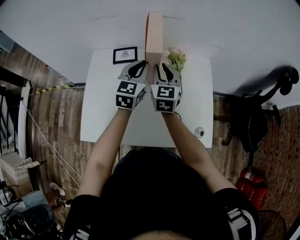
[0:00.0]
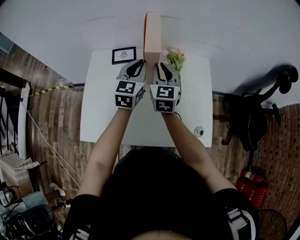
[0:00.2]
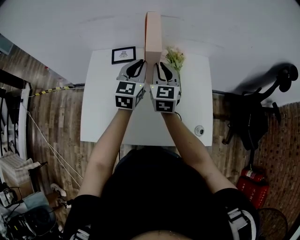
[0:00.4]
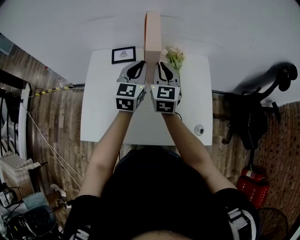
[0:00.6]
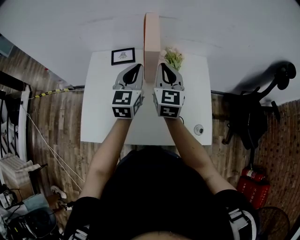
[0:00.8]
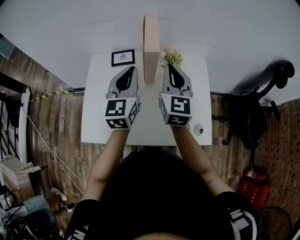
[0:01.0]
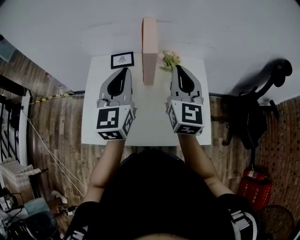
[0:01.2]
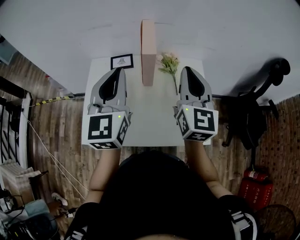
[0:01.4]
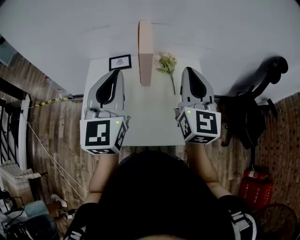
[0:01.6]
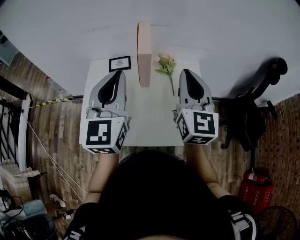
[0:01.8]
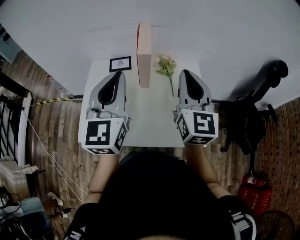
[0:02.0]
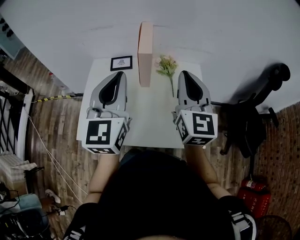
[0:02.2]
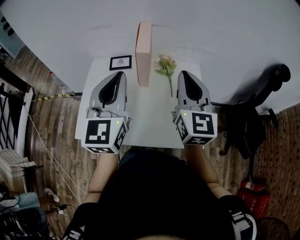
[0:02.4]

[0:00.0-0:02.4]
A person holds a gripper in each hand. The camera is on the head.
0.0 to 1.2 s: The right gripper heads upward, backward and to the right, covering some 20 cm. The left gripper is displaced upward and backward by roughly 15 cm.
1.2 to 2.4 s: The left gripper heads backward, covering about 5 cm, while the right gripper travels to the right and backward by about 5 cm.

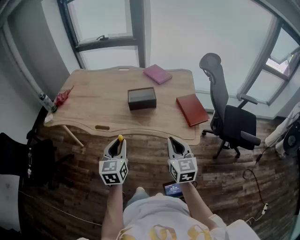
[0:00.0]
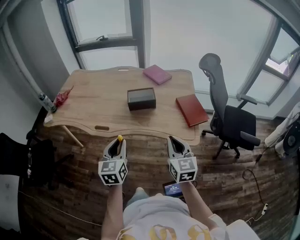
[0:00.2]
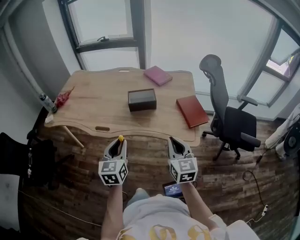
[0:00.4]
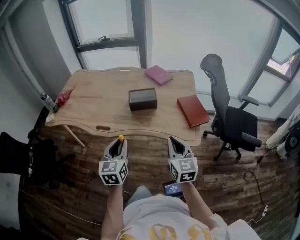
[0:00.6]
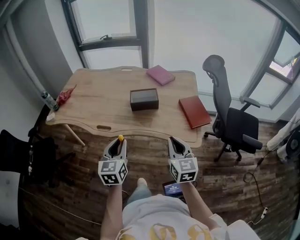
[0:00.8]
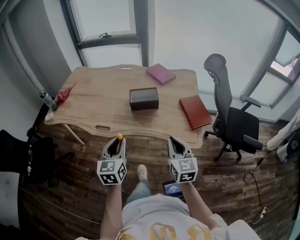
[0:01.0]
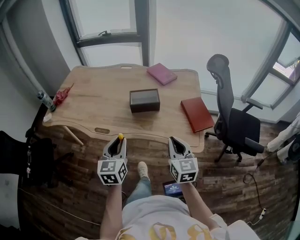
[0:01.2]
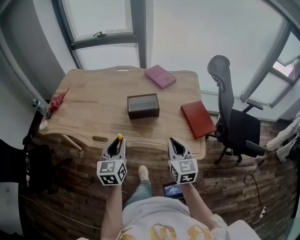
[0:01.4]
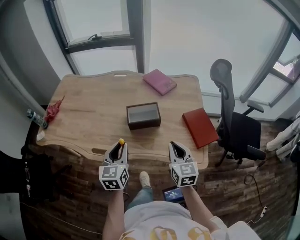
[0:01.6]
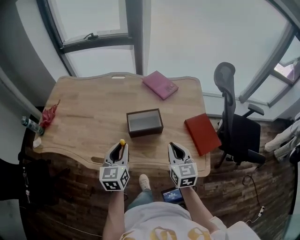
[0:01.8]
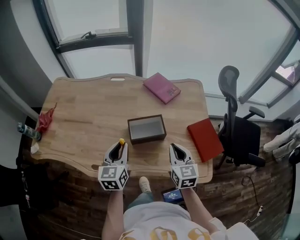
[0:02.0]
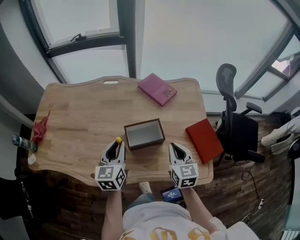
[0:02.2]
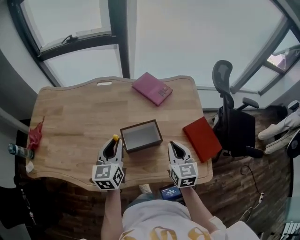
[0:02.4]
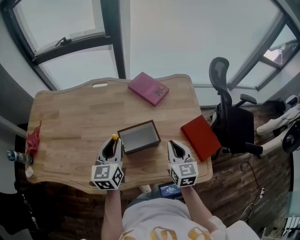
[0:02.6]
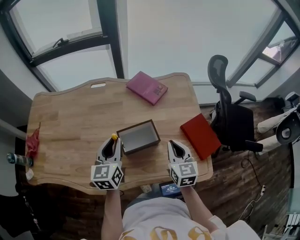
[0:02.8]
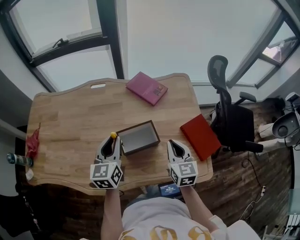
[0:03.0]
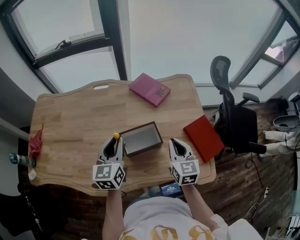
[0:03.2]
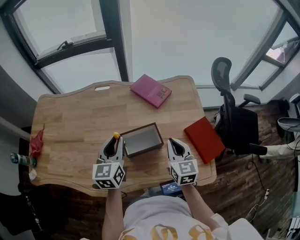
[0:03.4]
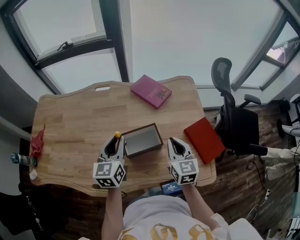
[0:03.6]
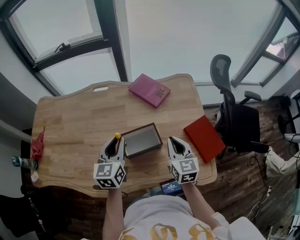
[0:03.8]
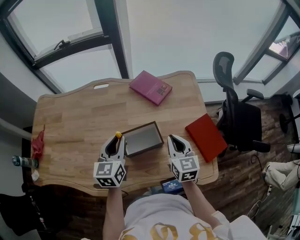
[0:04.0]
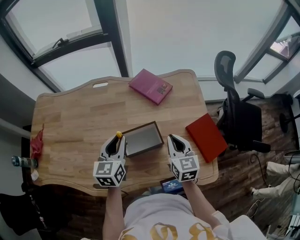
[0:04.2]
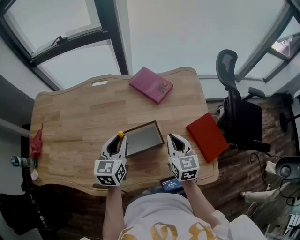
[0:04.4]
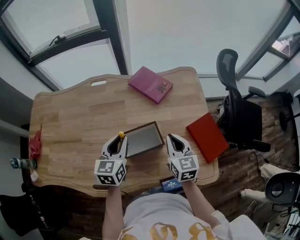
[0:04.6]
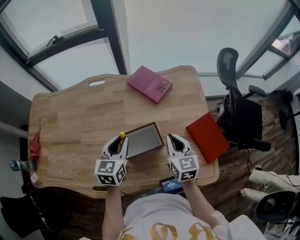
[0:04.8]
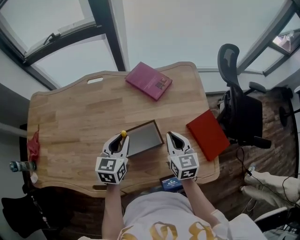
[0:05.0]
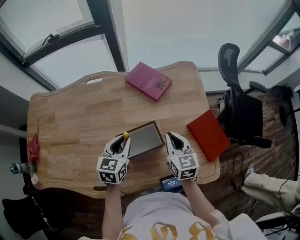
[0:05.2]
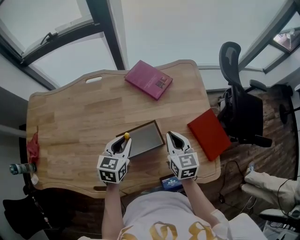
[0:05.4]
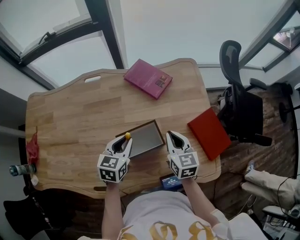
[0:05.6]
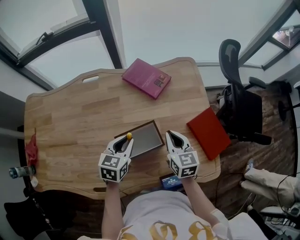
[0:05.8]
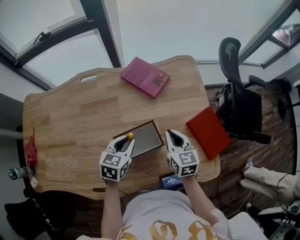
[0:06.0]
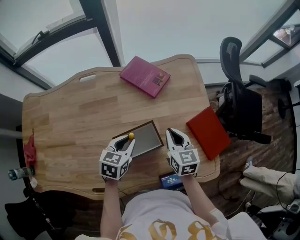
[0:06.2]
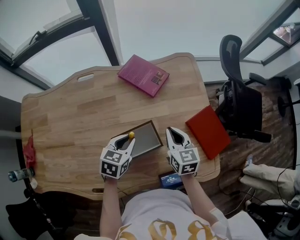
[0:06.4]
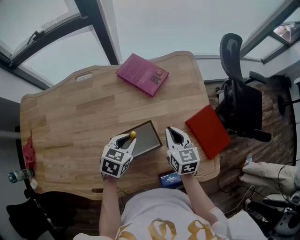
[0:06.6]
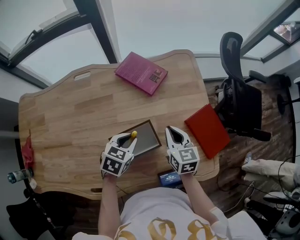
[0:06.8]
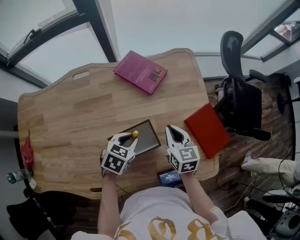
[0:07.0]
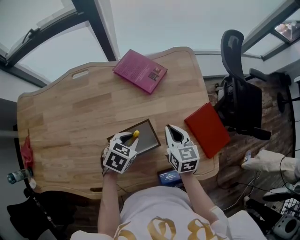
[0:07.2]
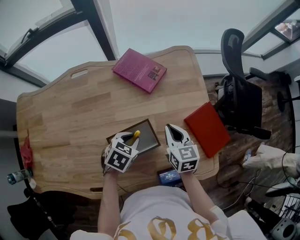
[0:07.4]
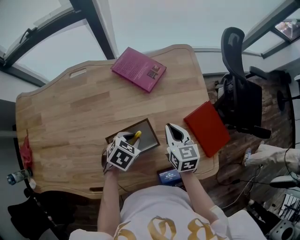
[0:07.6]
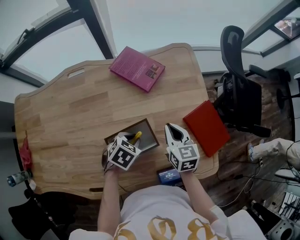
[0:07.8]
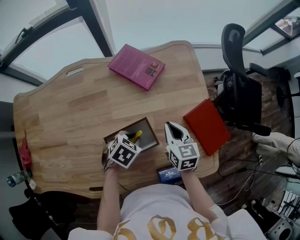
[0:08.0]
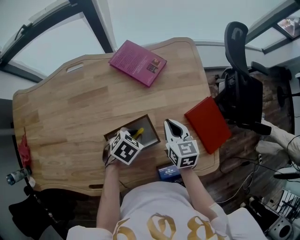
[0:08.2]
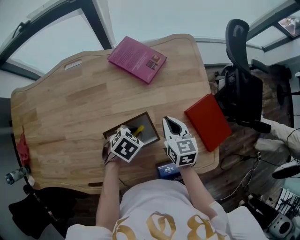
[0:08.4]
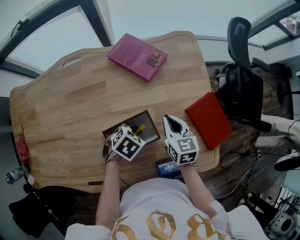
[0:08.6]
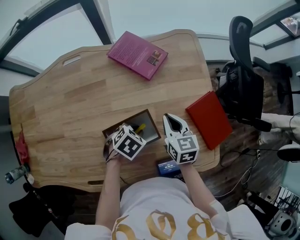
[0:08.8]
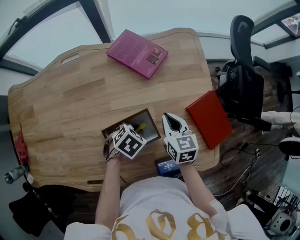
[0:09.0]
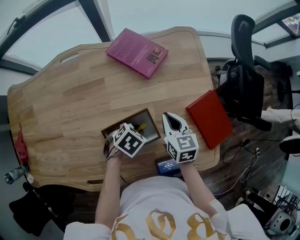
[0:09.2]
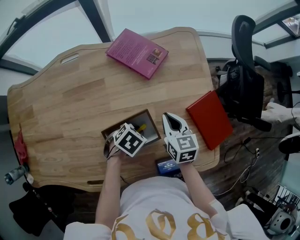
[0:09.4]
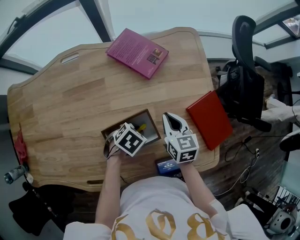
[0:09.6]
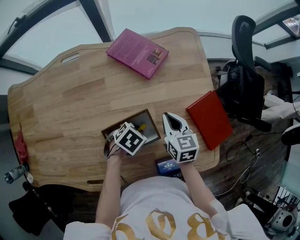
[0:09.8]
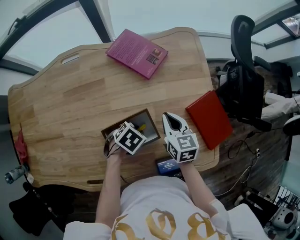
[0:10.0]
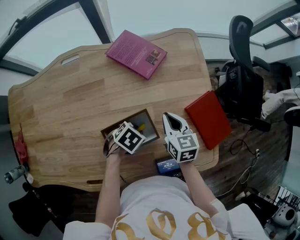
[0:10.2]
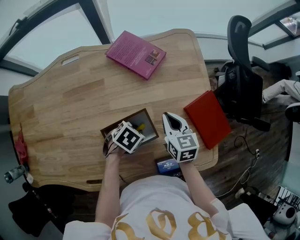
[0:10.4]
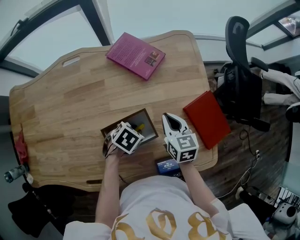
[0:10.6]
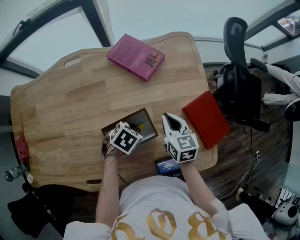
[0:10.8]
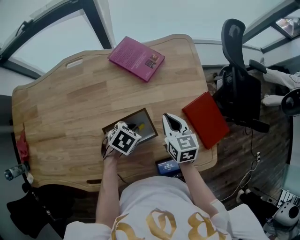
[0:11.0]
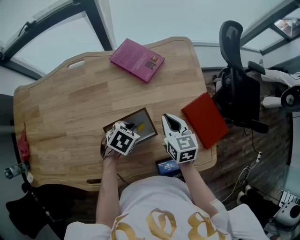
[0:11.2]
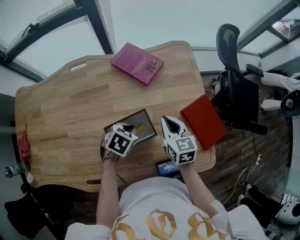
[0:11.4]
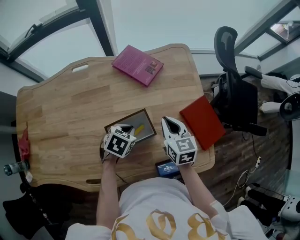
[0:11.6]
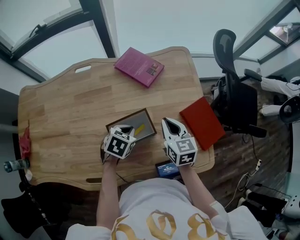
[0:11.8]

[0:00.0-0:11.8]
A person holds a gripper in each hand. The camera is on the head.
0.0 to 1.4 s: The grippers both shift forward by about 10 cm.
1.4 to 3.0 s: The two grippers go approximately 25 cm forward.
3.0 to 4.4 s: The left gripper moves about 5 cm. Meanwhile the right gripper ends up some 5 cm from where it was.
4.4 to 6.0 s: The left gripper travels downward by roughly 10 cm, and turns by approximately 30 degrees; the right gripper moves approximately 5 cm.
6.0 to 7.4 s: The left gripper heads downward, covering about 5 cm, and changes its angle by approximately 20 degrees.
7.4 to 8.8 s: The left gripper travels downward by roughly 5 cm.
8.8 to 10.4 s: The grippers move only a little.
10.4 to 11.8 s: The grippers both shift upward by about 5 cm. The left gripper changes its angle by some 20 degrees.

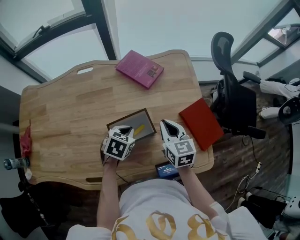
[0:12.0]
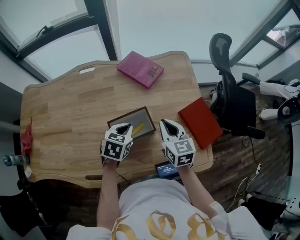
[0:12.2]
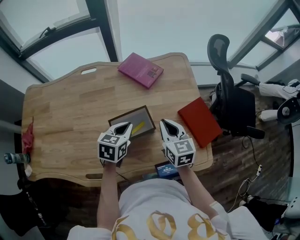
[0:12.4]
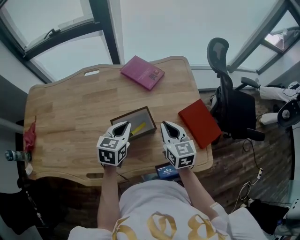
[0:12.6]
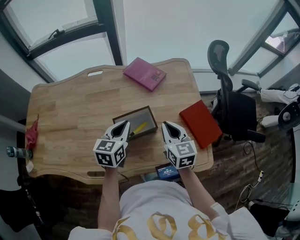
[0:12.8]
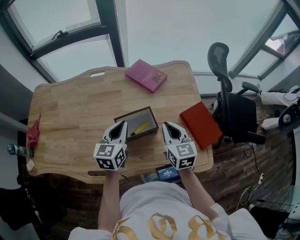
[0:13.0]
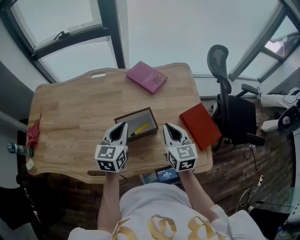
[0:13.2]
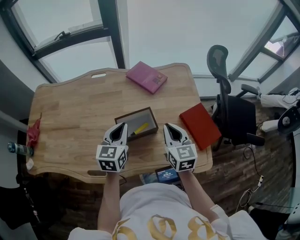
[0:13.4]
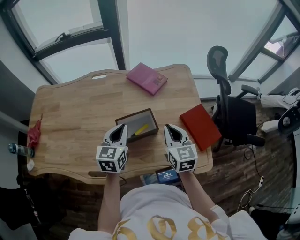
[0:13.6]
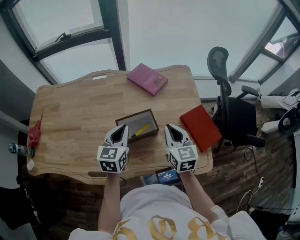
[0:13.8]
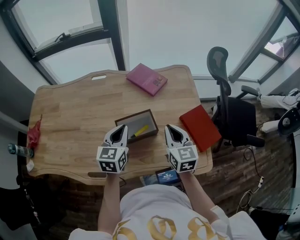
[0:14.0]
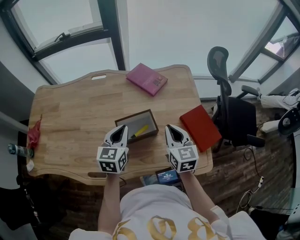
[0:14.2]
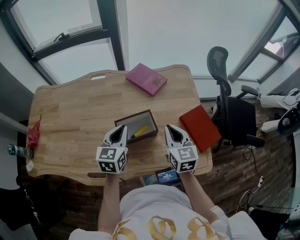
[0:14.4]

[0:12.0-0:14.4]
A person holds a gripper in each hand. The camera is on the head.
12.0 to 13.2 s: The right gripper travels upward and backward by about 10 cm. Meanwhile the left gripper moves upward, about 15 cm, and angles its fingers upward, by approximately 40 degrees.
13.2 to 14.4 s: The two grippers keep their place.

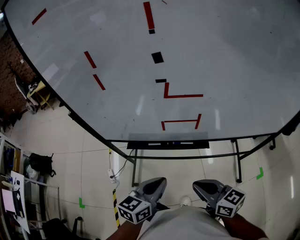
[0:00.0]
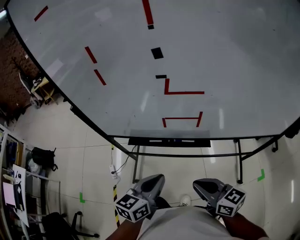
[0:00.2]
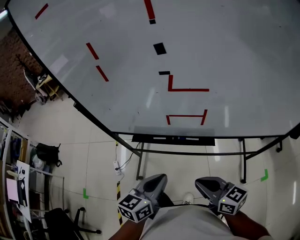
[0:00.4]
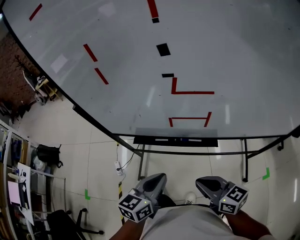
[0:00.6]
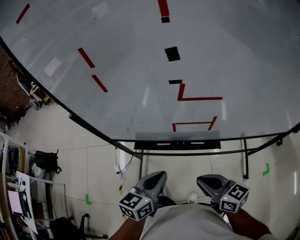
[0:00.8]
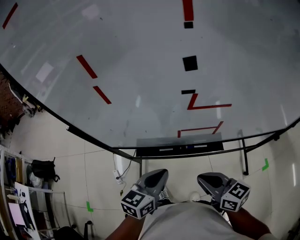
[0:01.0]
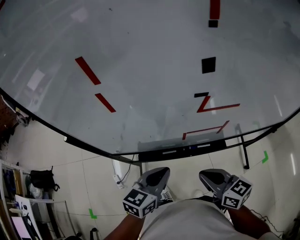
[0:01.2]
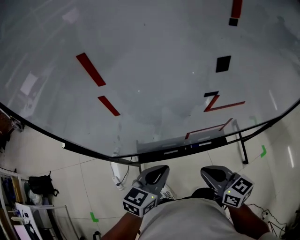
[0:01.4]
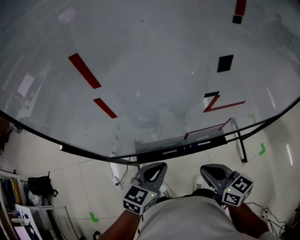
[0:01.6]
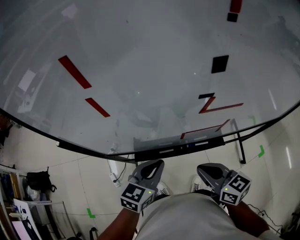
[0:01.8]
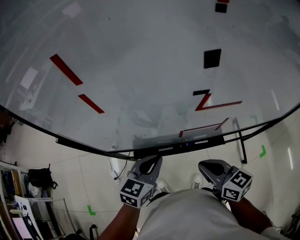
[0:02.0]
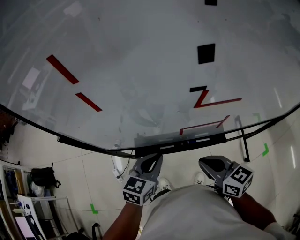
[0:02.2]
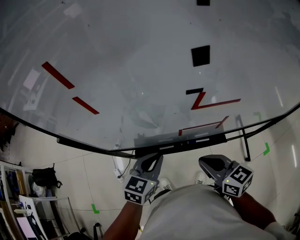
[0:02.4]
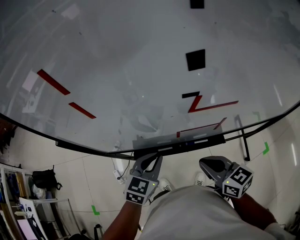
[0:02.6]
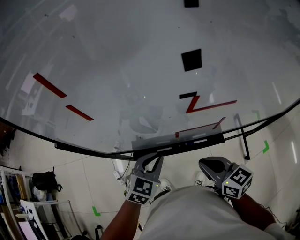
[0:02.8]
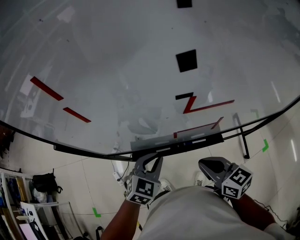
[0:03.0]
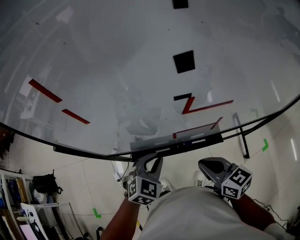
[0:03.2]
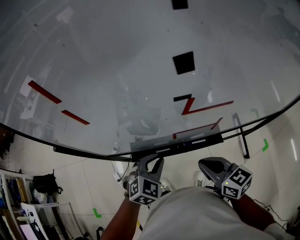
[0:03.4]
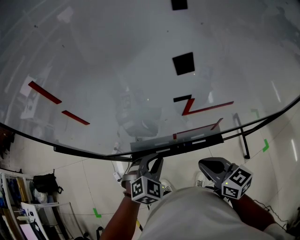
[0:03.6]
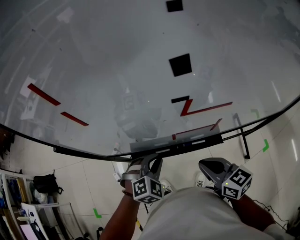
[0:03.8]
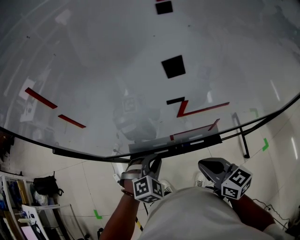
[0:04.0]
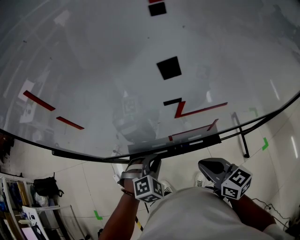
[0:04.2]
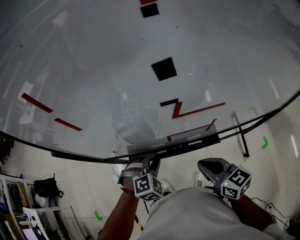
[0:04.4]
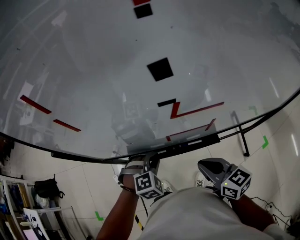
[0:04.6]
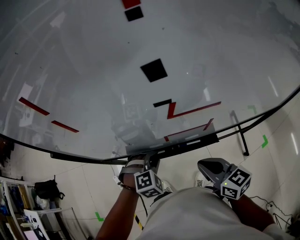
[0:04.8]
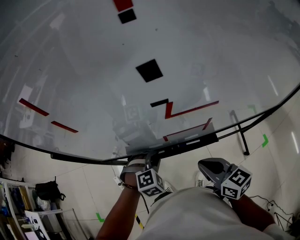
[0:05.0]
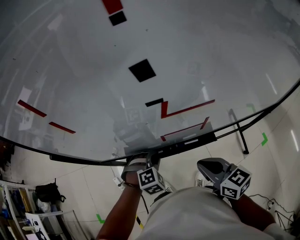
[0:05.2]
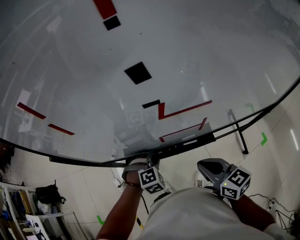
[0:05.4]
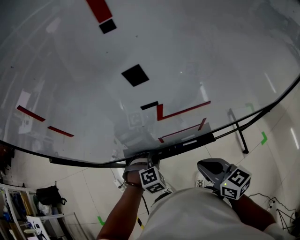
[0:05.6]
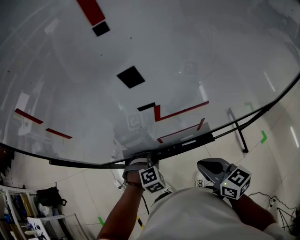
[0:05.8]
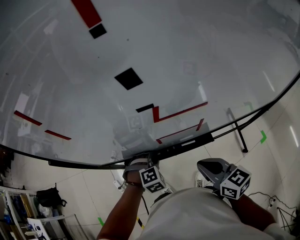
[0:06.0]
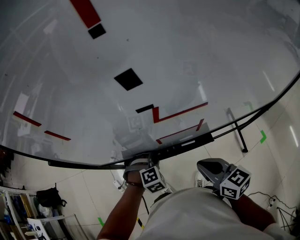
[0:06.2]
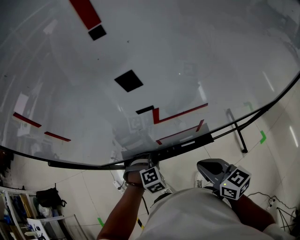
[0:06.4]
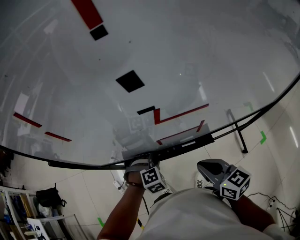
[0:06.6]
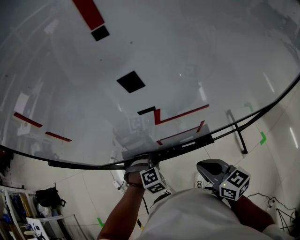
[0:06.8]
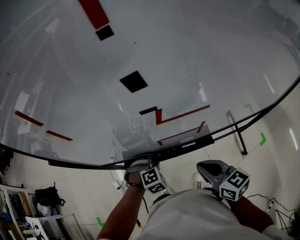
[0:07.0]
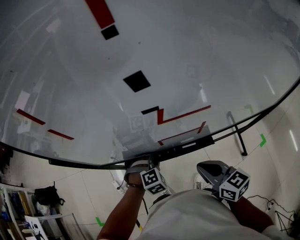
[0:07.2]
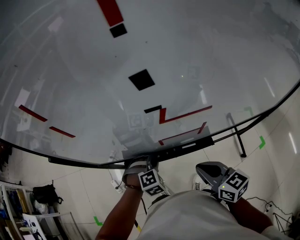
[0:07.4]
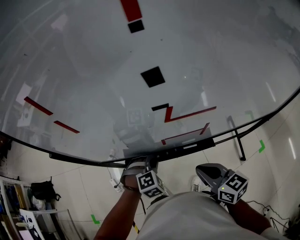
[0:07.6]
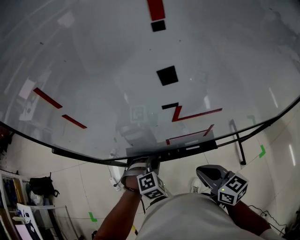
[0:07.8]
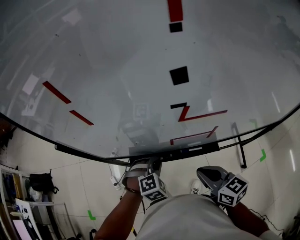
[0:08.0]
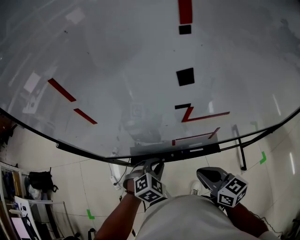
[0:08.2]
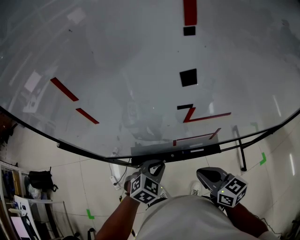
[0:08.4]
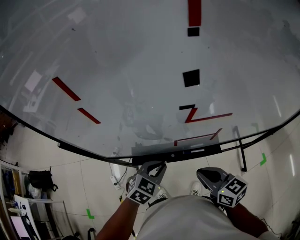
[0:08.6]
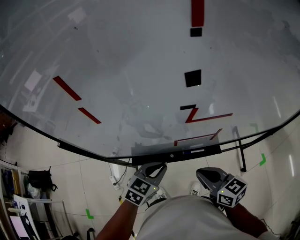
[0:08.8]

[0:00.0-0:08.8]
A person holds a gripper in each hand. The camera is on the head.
0.0 to 1.4 s: Both grippers move forward and to the left, roughly 15 cm.
1.4 to 3.0 s: The left gripper ends up roughly 5 cm from where it was, and rotates about 30 degrees.
3.0 to 4.4 s: The left gripper changes place by approximately 5 cm, and changes its angle by some 40 degrees.
4.4 to 5.8 s: The left gripper travels downward by roughly 5 cm.
5.8 to 7.4 s: Both grippers stay about where they are.
7.4 to 8.8 s: The left gripper travels upward by some 10 cm, and twists approximately 50 degrees counterclockwise, seen from behind.
